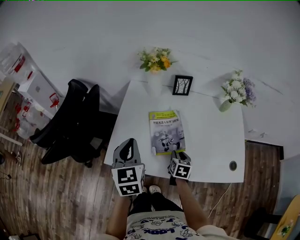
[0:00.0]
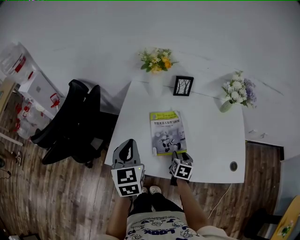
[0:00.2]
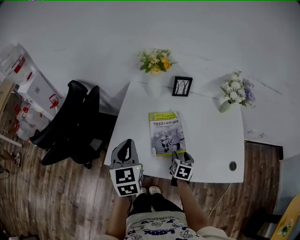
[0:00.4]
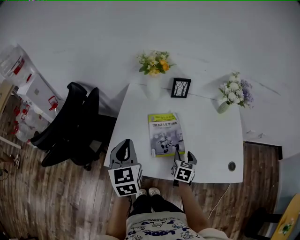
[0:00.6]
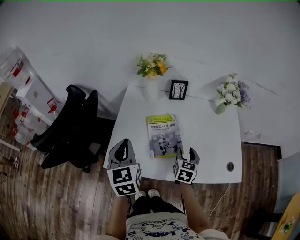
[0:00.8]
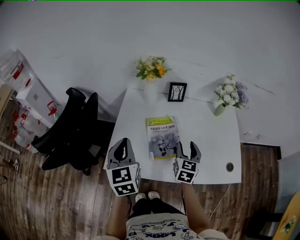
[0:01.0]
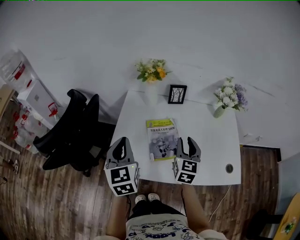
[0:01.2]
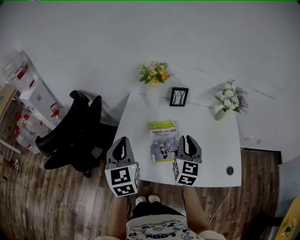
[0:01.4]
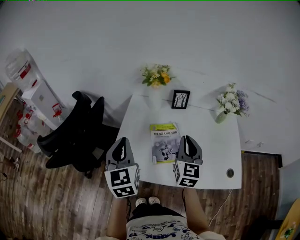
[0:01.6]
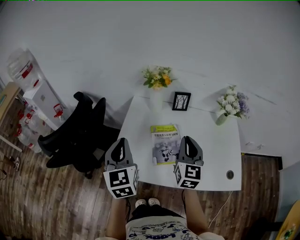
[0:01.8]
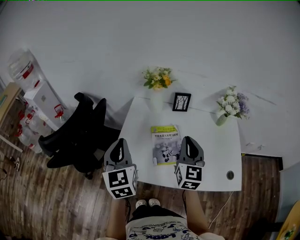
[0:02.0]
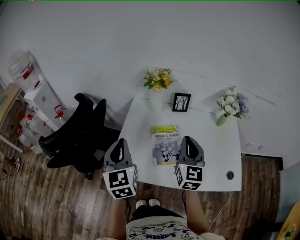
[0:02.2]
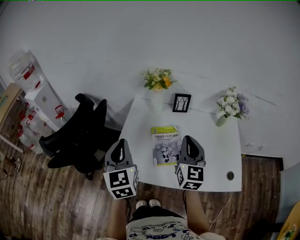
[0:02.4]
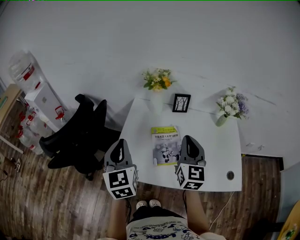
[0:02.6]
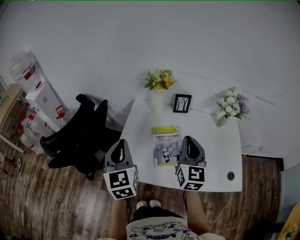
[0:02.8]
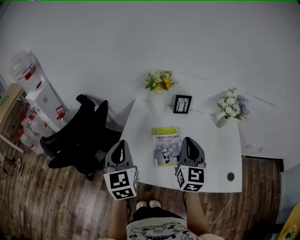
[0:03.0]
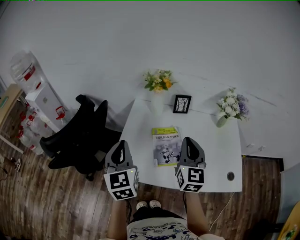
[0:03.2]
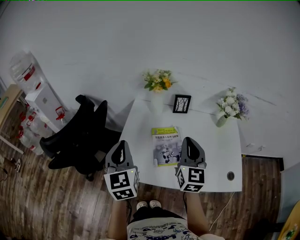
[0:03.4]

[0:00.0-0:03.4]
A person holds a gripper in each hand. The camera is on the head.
0:00.0 to 0:01.6: The right gripper goes some 25 cm upward, tilts its fingers about 40 degrees upward, and opens and closes again. Meanwhile the left gripper travels upward by approximately 5 cm.
0:01.6 to 0:03.4: The grippers move only a little.

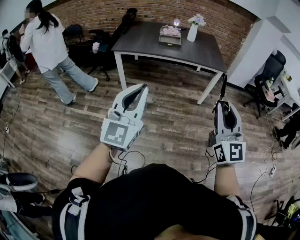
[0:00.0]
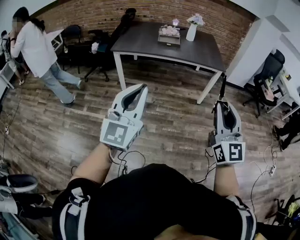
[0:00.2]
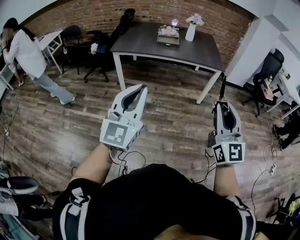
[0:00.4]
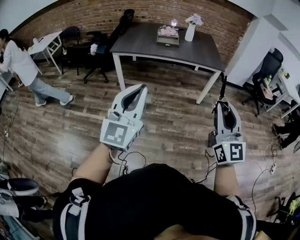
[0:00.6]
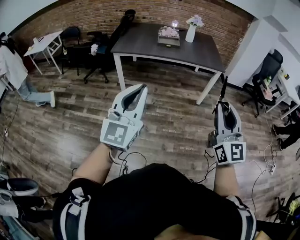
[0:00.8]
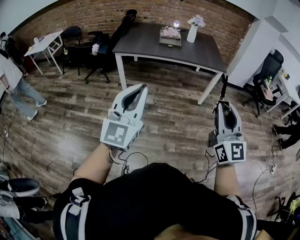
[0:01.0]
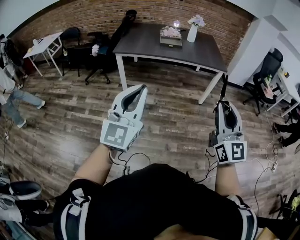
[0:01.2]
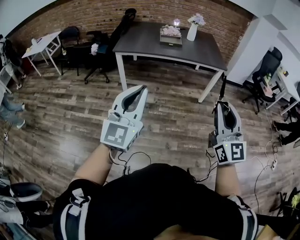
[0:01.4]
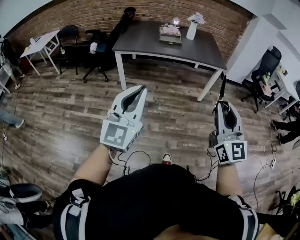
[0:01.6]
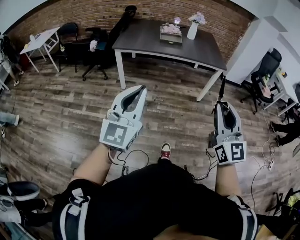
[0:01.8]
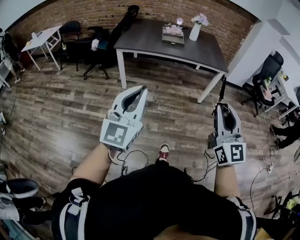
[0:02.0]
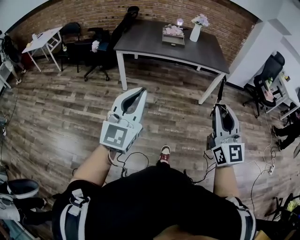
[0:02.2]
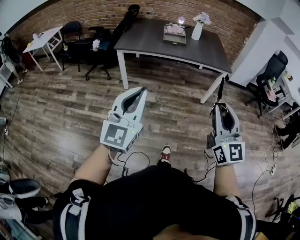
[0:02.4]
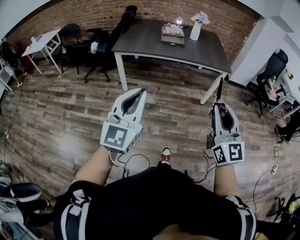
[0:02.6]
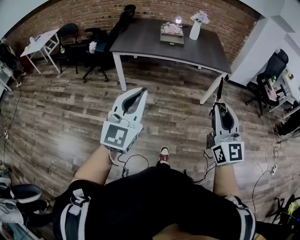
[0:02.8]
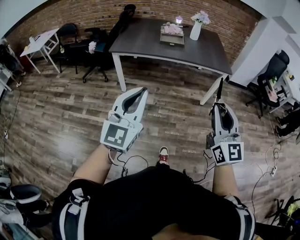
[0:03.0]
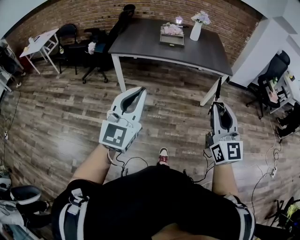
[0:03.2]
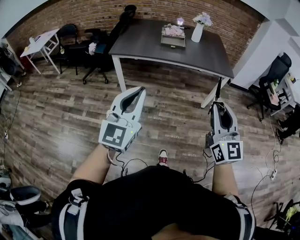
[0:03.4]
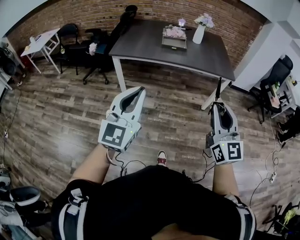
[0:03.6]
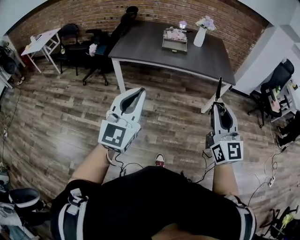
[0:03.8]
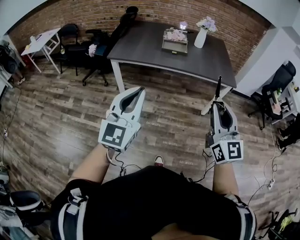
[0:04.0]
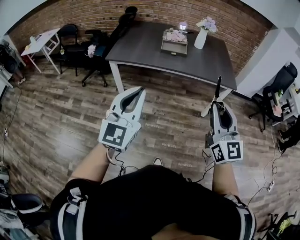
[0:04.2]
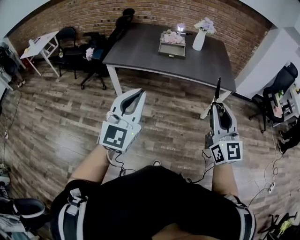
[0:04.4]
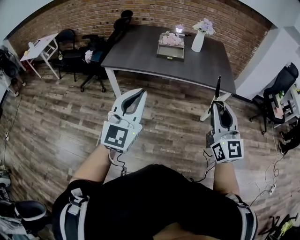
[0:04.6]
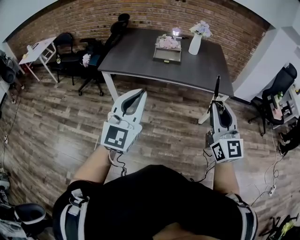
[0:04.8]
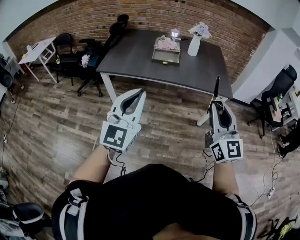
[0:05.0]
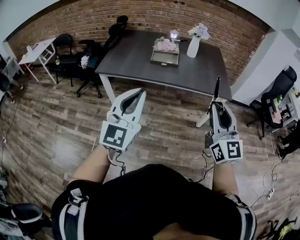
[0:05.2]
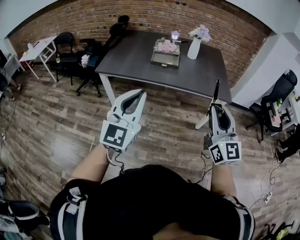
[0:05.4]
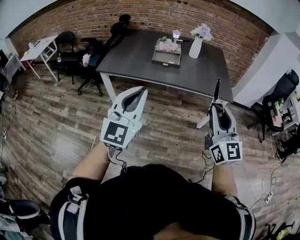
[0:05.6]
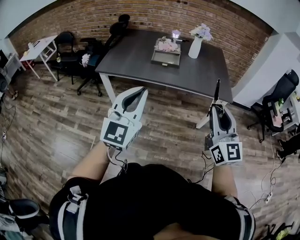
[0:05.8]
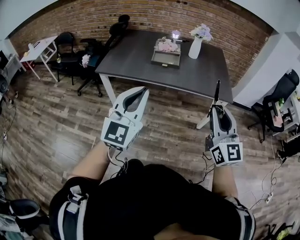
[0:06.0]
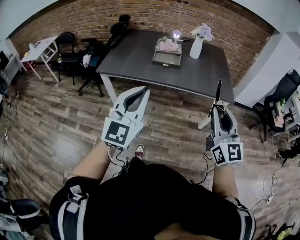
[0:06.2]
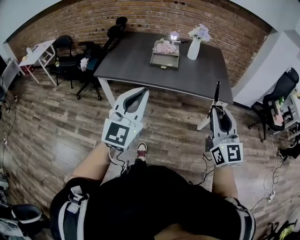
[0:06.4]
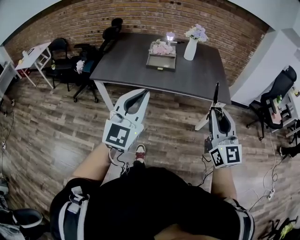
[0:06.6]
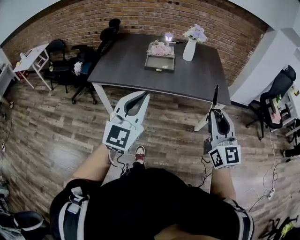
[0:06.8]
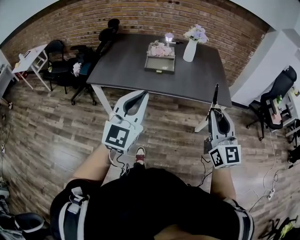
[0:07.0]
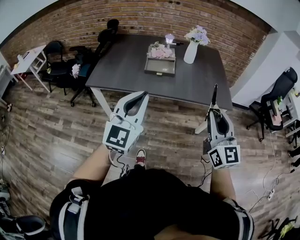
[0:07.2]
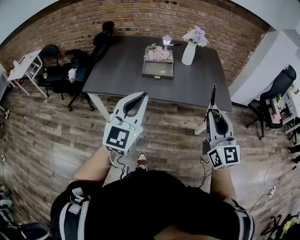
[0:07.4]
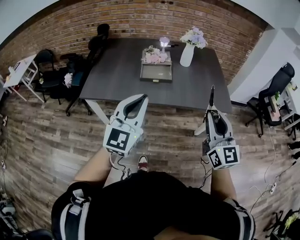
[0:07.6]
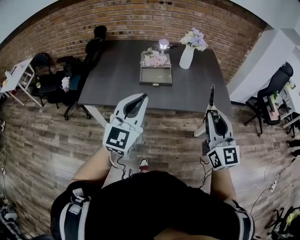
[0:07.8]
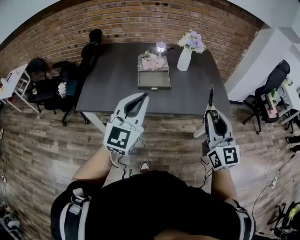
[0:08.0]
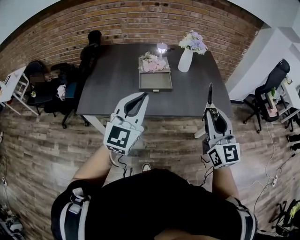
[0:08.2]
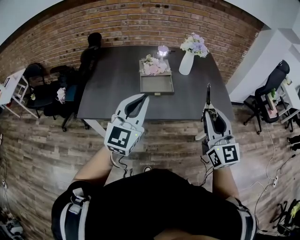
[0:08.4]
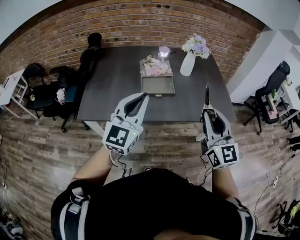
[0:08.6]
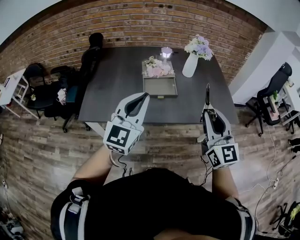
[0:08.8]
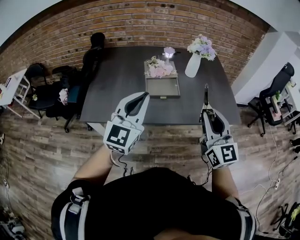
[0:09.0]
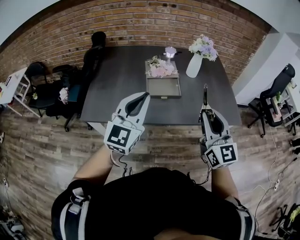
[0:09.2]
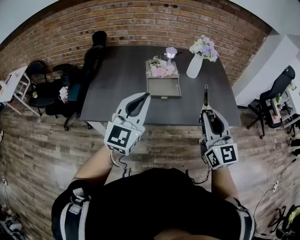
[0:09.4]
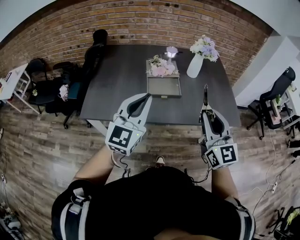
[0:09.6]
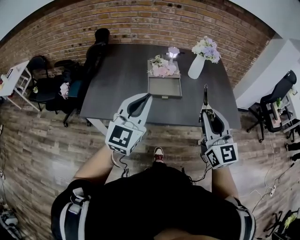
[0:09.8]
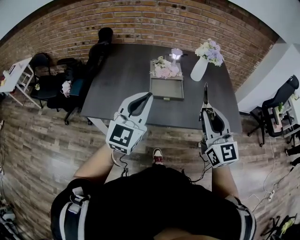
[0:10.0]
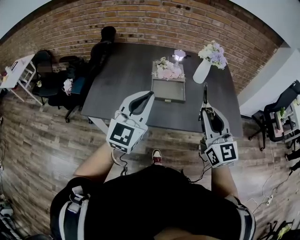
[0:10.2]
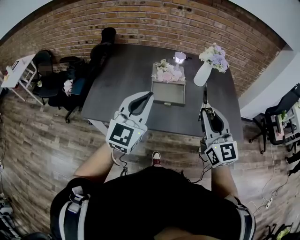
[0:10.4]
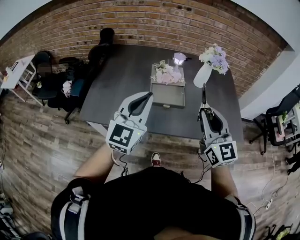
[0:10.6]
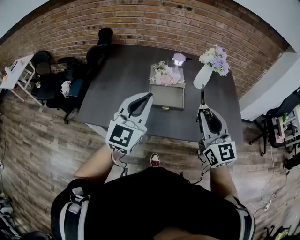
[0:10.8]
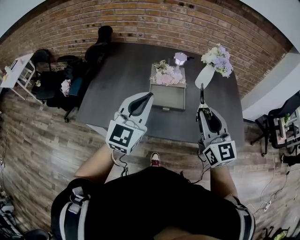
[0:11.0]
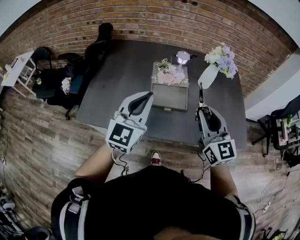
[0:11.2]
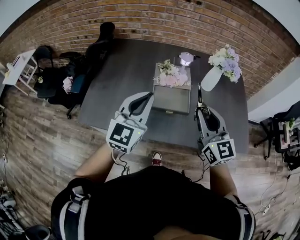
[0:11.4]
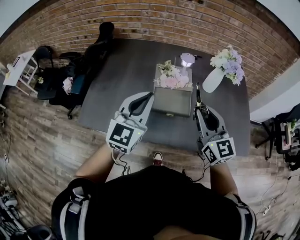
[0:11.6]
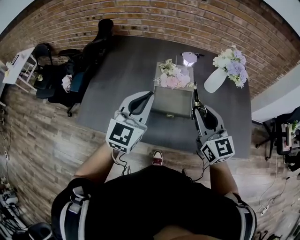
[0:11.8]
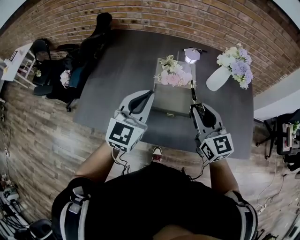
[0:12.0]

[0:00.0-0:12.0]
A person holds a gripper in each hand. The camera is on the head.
0:00.0 to 0:01.6: Both grippers move to the left, roughly 5 cm.
0:01.6 to 0:03.0: The two grippers go about 10 cm forward.
0:03.0 to 0:04.4: The grippers both shift forward by roughly 20 cm.
0:04.4 to 0:06.0: The two grippers go approximately 10 cm forward and to the right.
0:06.0 to 0:07.6: The grippers both shift forward by some 20 cm.
0:07.6 to 0:09.0: Both grippers travel together forward and to the left, approximately 15 cm.
0:09.0 to 0:10.4: The right gripper shifts roughly 5 cm forward.
0:10.4 to 0:12.0: Both grippers travel together forward and downward, roughly 20 cm.

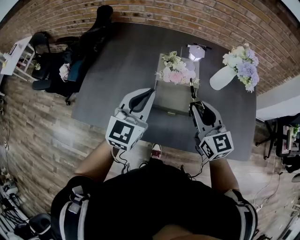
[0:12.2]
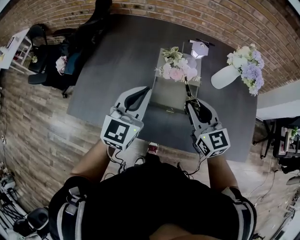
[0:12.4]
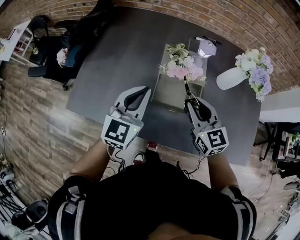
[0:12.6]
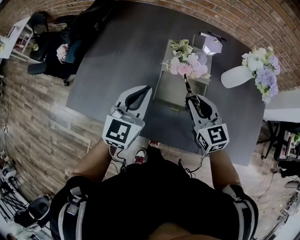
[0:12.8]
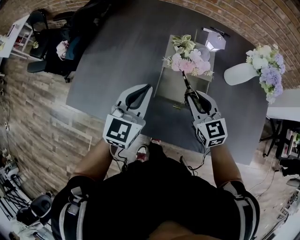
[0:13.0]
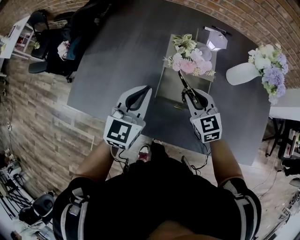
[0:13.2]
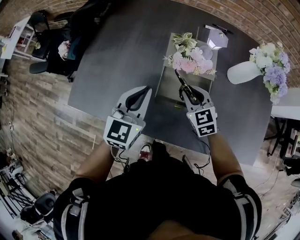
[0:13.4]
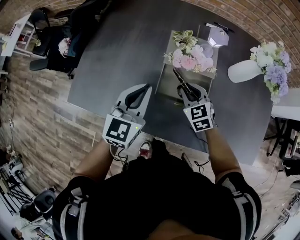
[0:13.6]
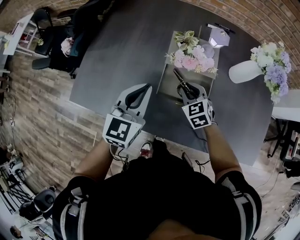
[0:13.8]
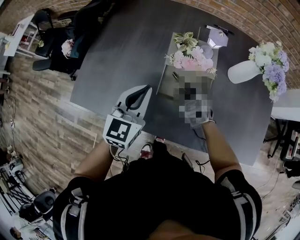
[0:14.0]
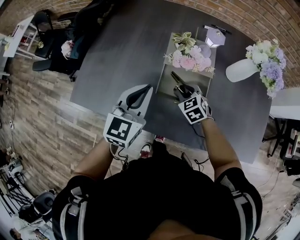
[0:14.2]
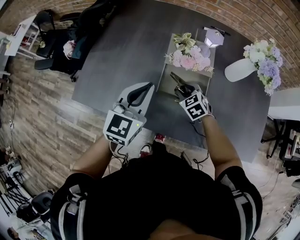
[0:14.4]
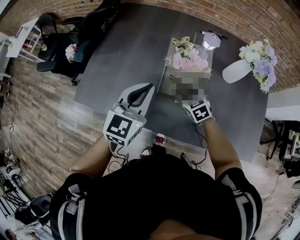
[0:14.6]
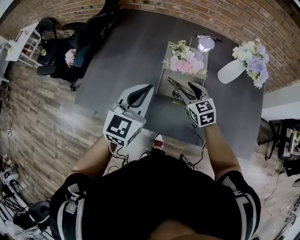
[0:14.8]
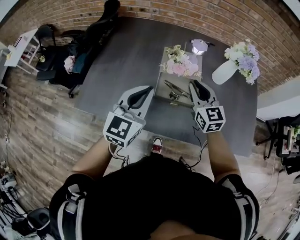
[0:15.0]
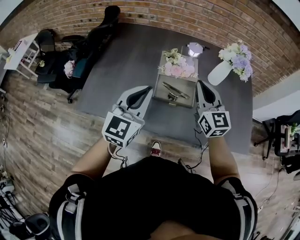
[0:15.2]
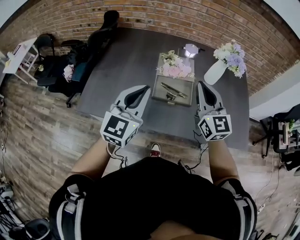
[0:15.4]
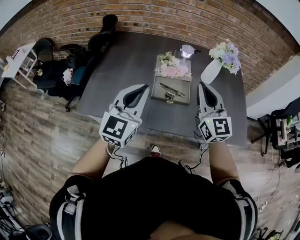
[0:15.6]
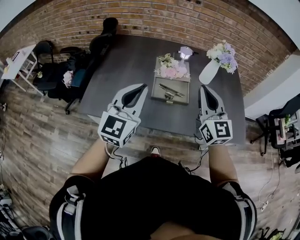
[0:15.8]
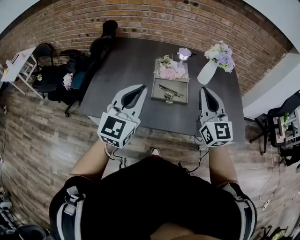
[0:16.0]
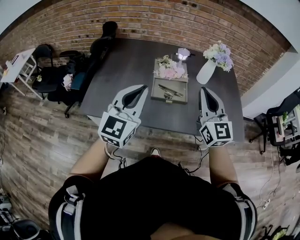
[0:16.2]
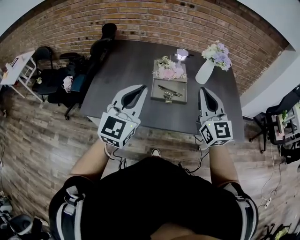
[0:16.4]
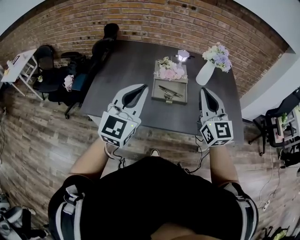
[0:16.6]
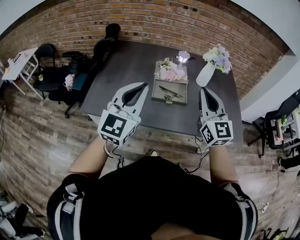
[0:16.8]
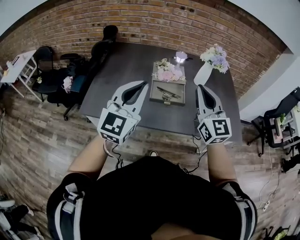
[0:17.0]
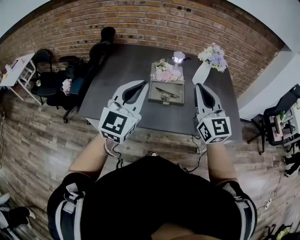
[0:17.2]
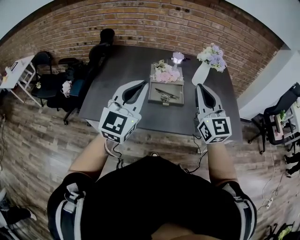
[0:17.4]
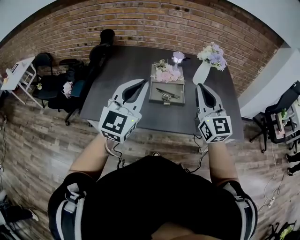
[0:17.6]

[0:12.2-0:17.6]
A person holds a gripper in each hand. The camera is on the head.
0:12.2 to 0:13.6: The left gripper goes some 10 cm downward. Meanwhile the right gripper travels downward and forward by about 20 cm, and changes its angle by some 30 degrees.
0:13.6 to 0:15.0: The right gripper is displaced upward by roughly 15 cm, changes its angle by roughly 30 degrees, and opens, then closes once more; the left gripper travels upward and backward by approximately 10 cm.
0:15.0 to 0:16.2: The right gripper heads backward and upward, covering approximately 25 cm, and swivels about 20 degrees; the left gripper goes approximately 15 cm backward and upward.
0:16.2 to 0:17.6: There are only small adjustments of the grippers.

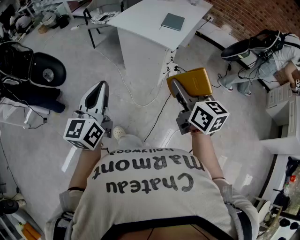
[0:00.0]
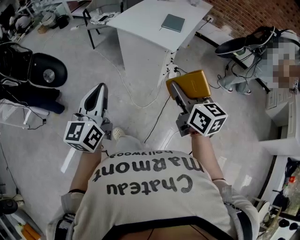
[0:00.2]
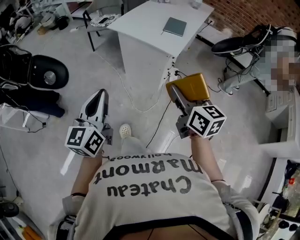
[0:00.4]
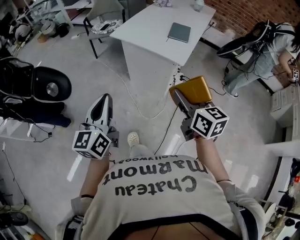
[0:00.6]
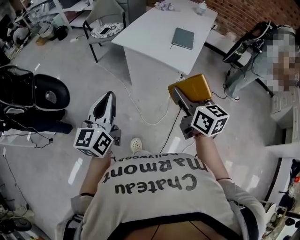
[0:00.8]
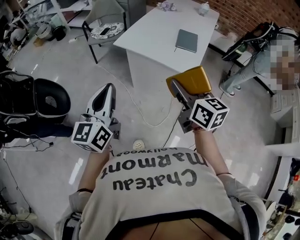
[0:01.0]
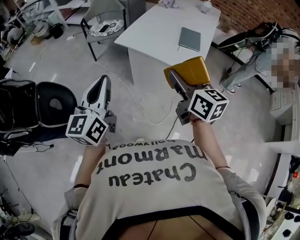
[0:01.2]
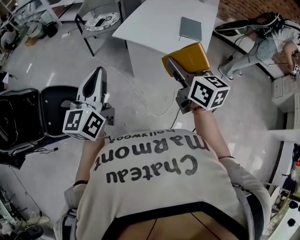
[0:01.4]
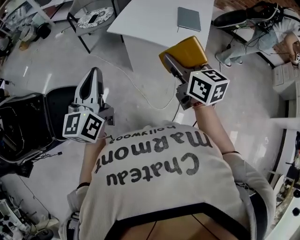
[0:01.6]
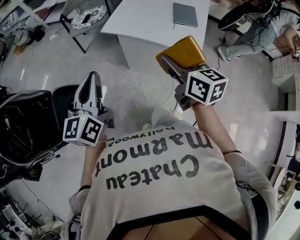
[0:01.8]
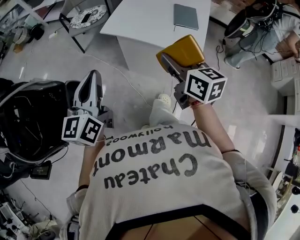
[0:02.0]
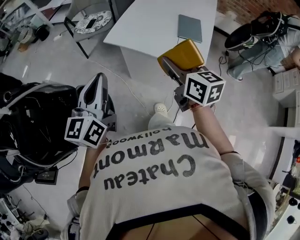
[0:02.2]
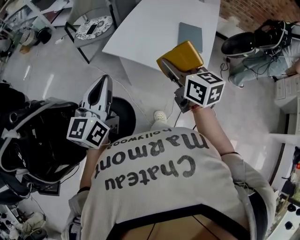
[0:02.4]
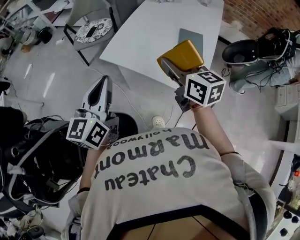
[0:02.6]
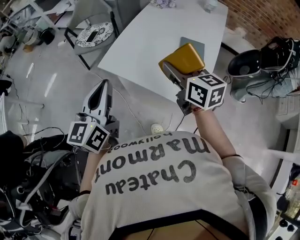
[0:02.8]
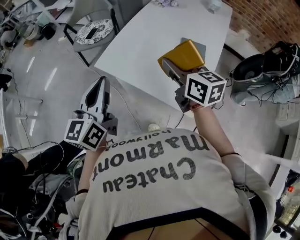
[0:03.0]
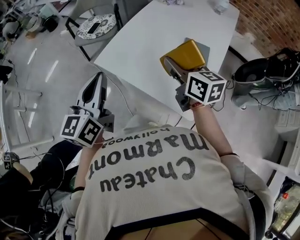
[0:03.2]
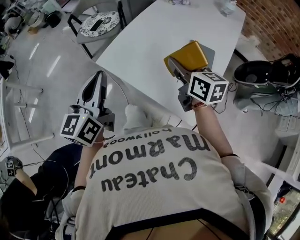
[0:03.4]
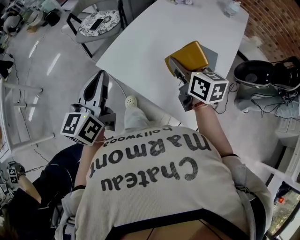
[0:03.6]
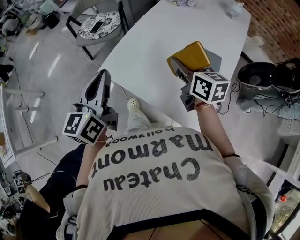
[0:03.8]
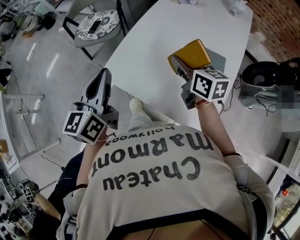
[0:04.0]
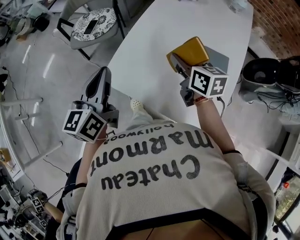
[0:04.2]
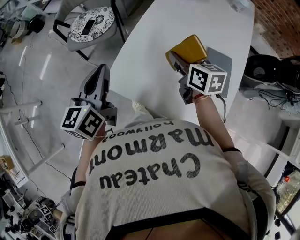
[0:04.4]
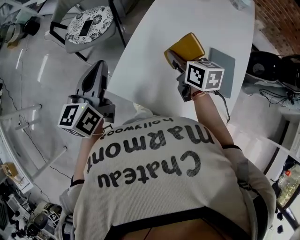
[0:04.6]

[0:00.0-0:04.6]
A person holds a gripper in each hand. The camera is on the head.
0:00.0 to 0:01.6: Both grippers travel together forward and to the left, about 35 cm.
0:01.6 to 0:03.0: The grippers both shift forward and to the right by some 30 cm.
0:03.0 to 0:04.6: The right gripper shifts some 30 cm forward and downward, and turns by about 20 degrees; the left gripper goes some 30 cm forward.
